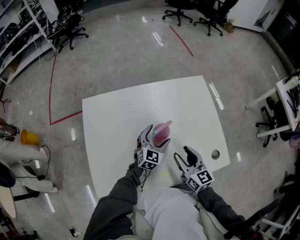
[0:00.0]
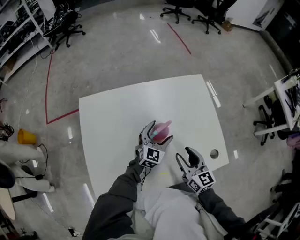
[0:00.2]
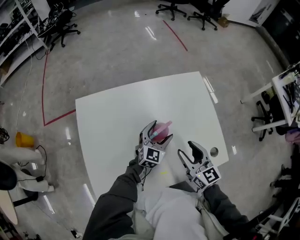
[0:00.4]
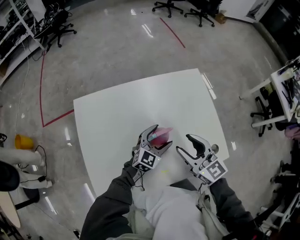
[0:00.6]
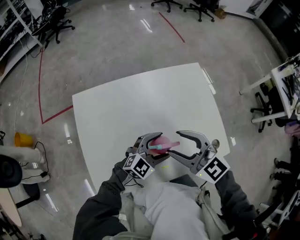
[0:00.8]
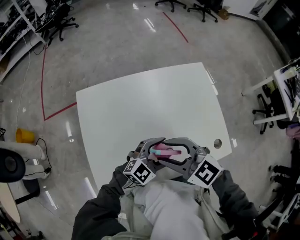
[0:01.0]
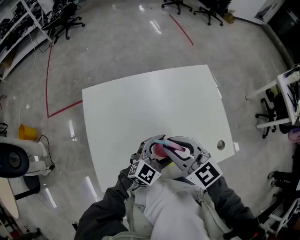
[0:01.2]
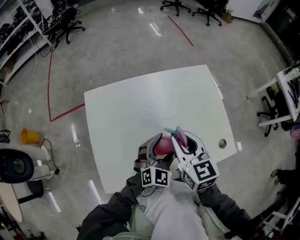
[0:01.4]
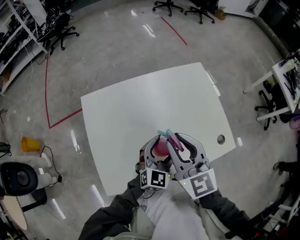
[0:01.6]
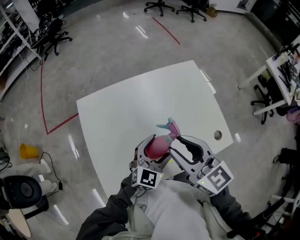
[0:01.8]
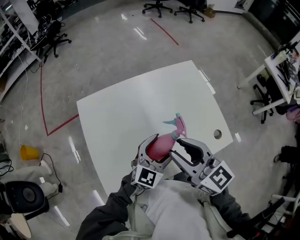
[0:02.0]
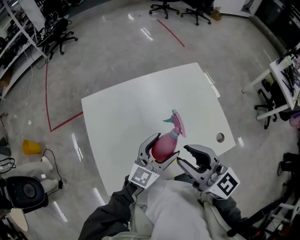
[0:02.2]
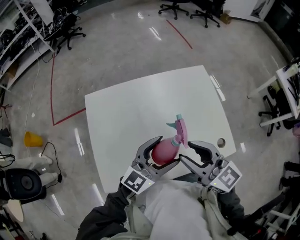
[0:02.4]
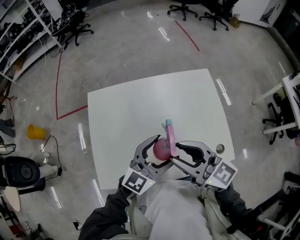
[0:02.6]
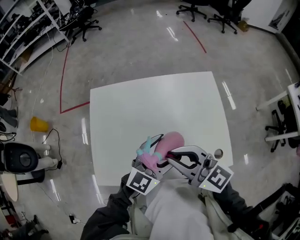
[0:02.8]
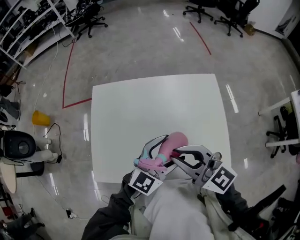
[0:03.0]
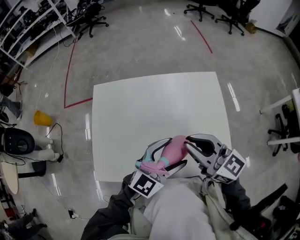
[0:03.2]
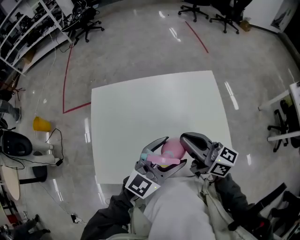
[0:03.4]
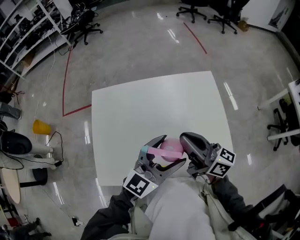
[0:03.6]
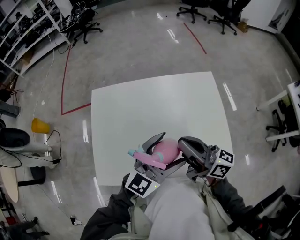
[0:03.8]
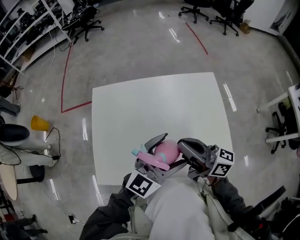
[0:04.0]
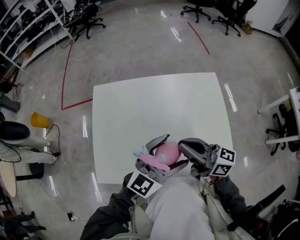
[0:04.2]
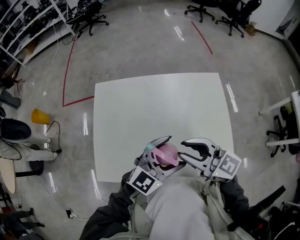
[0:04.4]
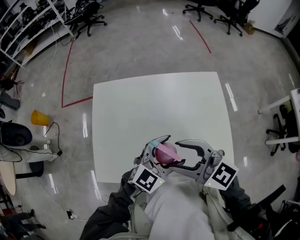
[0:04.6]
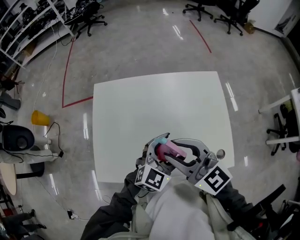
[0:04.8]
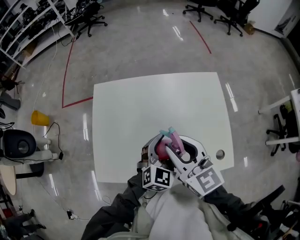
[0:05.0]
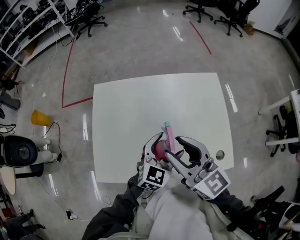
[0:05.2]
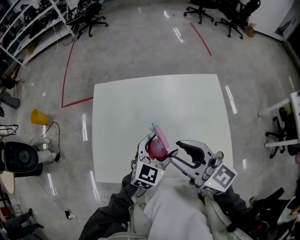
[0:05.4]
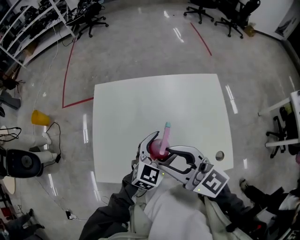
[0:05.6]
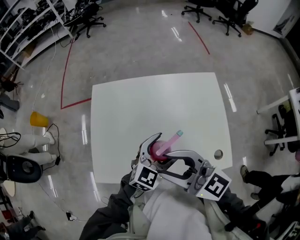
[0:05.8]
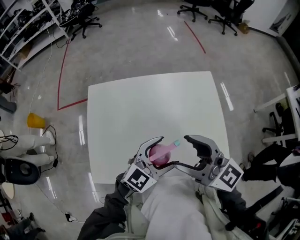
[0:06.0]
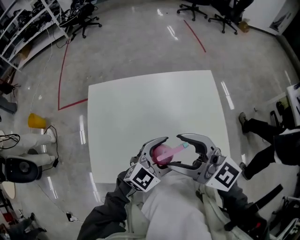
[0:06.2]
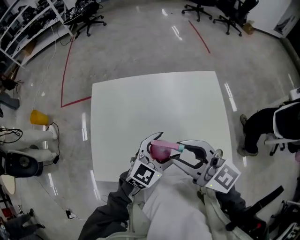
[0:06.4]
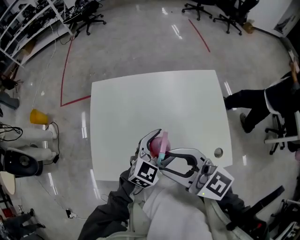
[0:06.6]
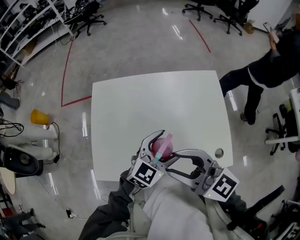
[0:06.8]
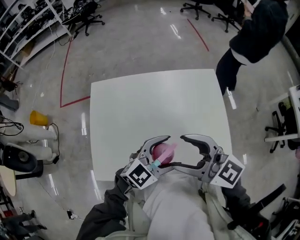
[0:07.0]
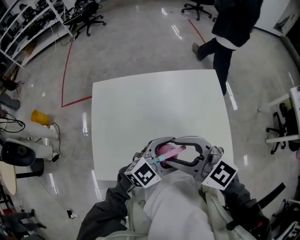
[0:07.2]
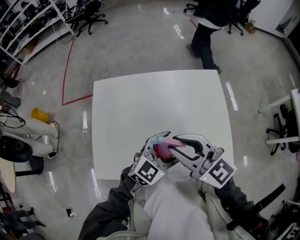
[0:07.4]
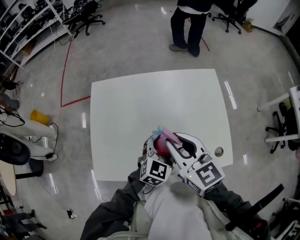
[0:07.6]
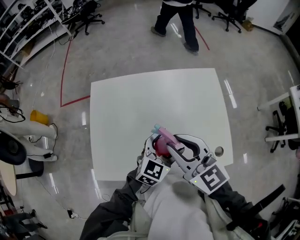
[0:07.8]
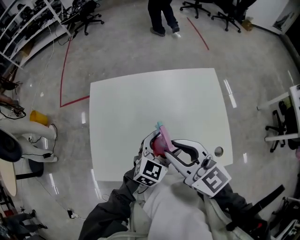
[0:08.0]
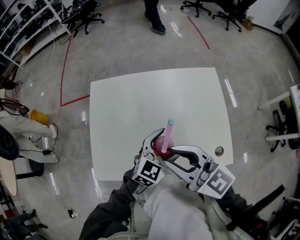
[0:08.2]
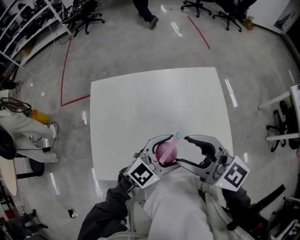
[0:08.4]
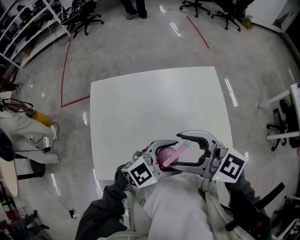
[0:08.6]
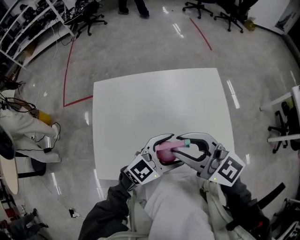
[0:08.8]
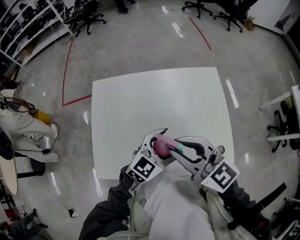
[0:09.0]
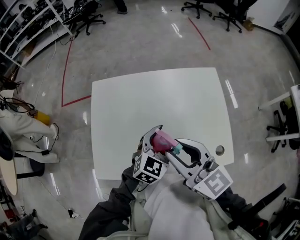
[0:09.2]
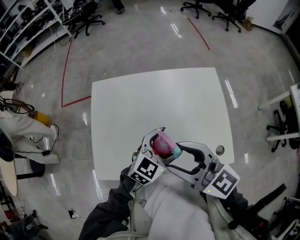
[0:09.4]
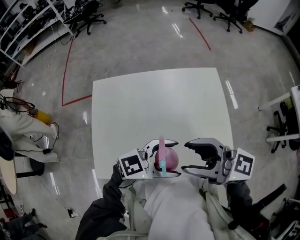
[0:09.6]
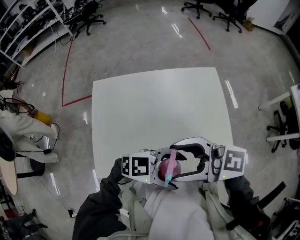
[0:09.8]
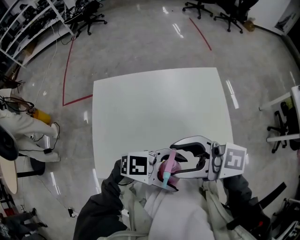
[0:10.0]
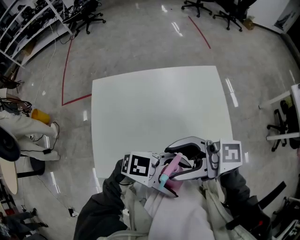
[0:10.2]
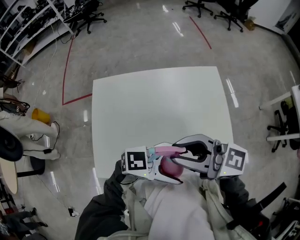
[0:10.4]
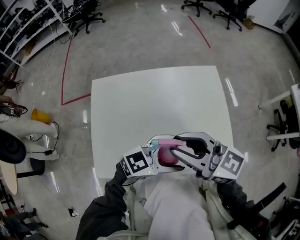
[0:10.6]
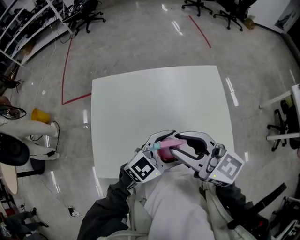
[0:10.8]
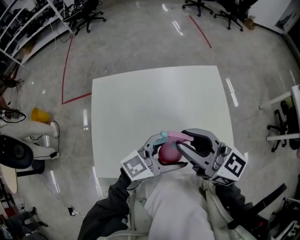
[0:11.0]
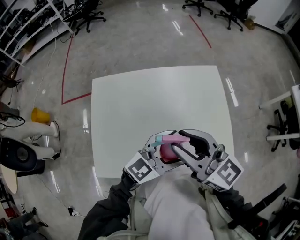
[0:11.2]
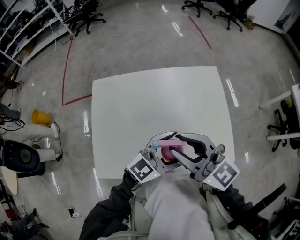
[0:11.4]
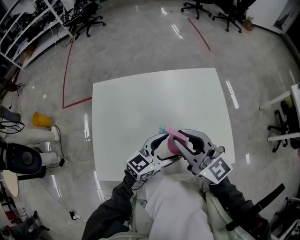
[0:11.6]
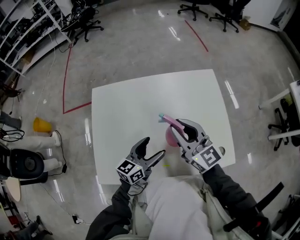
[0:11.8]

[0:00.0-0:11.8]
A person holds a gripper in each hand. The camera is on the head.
0:00.0 to 0:01.4: The left gripper changes place by about 15 cm. Meanwhile the right gripper goes about 10 cm upward, and closes up.
0:01.4 to 0:03.0: The left gripper moves upward and to the right, about 15 cm, and changes its angle by some 20 degrees. Meanwhile the right gripper is displaced upward, backward and to the right by roughly 10 cm, and rotates roughly 50 degrees.
0:04.4 to 0:06.0: The right gripper is displaced upward by some 5 cm, and opens up.
0:06.0 to 0:07.4: The right gripper closes.
0:07.4 to 0:08.8: The right gripper opens and closes again.
0:08.8 to 0:10.4: The right gripper rotates roughly 20 degrees, and opens, then closes again, while the left gripper rotates approximately 40 degrees.
0:10.4 to 0:11.8: The right gripper changes place by roughly 15 cm, and swivels roughly 40 degrees; the left gripper travels downward by approximately 15 cm, and turns by some 60 degrees.

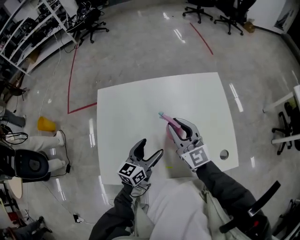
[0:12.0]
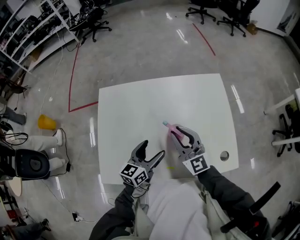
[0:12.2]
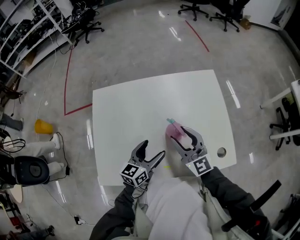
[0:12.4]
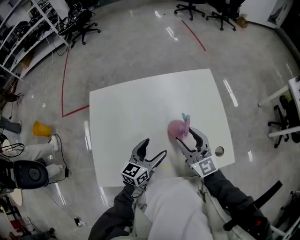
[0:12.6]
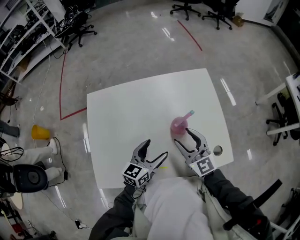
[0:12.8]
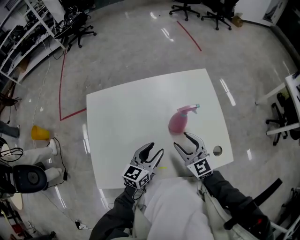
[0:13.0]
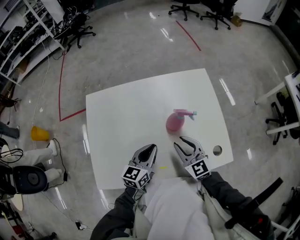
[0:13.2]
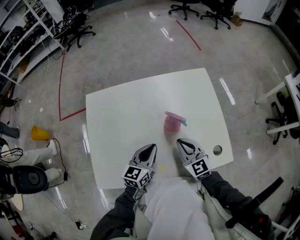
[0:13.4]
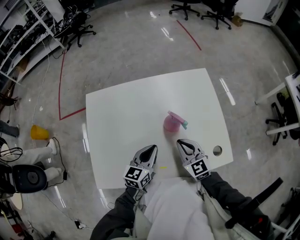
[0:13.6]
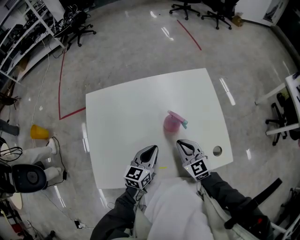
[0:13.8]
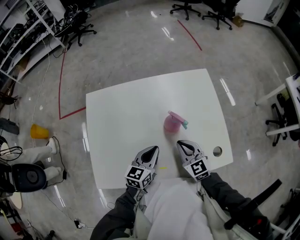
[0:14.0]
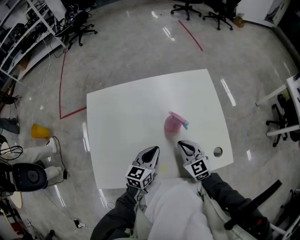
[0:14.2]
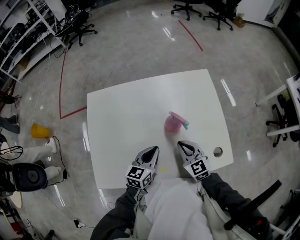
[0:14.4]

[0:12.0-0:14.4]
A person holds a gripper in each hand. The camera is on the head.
0:12.0 to 0:13.2: The right gripper moves downward, to the right and backward, about 15 cm, and rotates roughly 20 degrees; the left gripper closes up.
0:13.2 to 0:14.4: The right gripper closes its fingers.

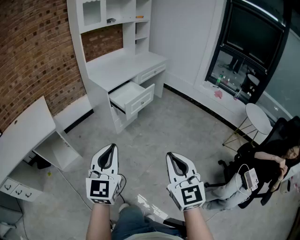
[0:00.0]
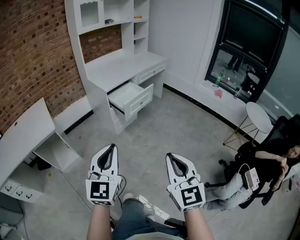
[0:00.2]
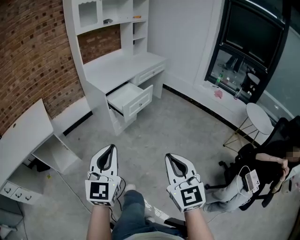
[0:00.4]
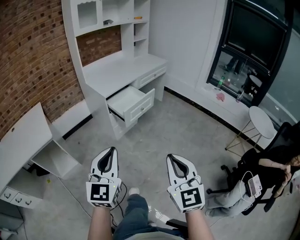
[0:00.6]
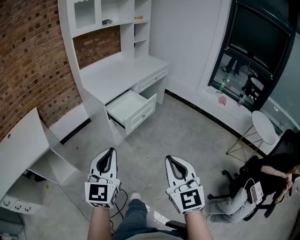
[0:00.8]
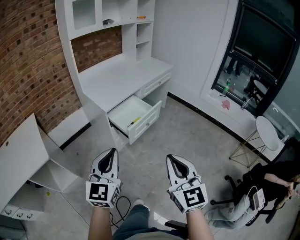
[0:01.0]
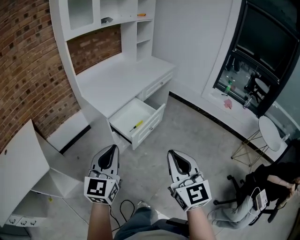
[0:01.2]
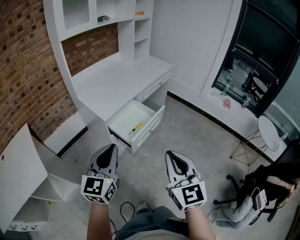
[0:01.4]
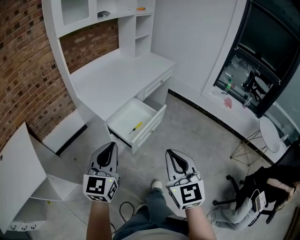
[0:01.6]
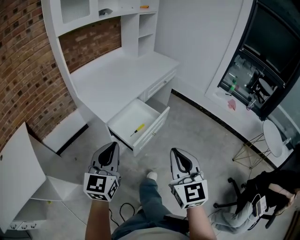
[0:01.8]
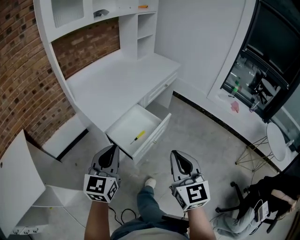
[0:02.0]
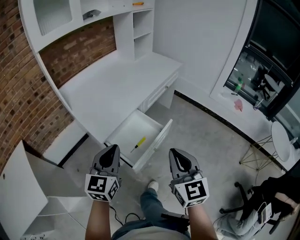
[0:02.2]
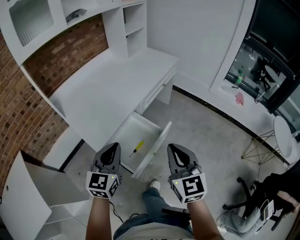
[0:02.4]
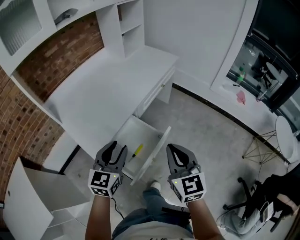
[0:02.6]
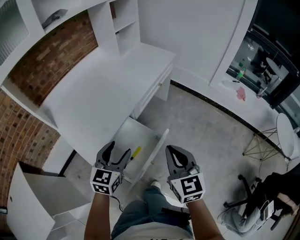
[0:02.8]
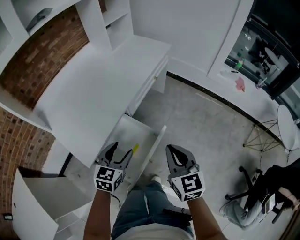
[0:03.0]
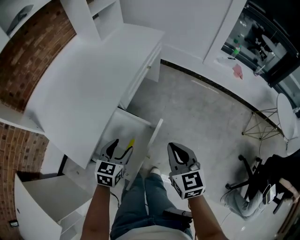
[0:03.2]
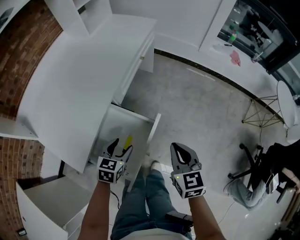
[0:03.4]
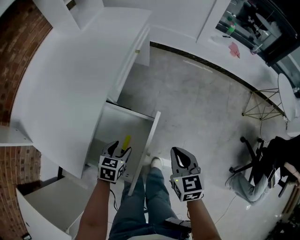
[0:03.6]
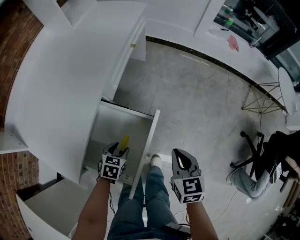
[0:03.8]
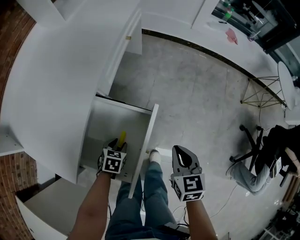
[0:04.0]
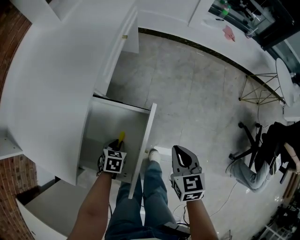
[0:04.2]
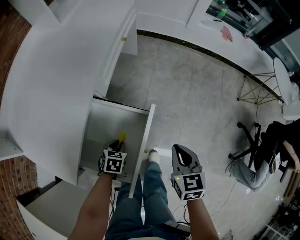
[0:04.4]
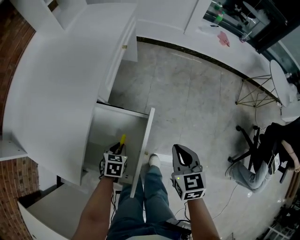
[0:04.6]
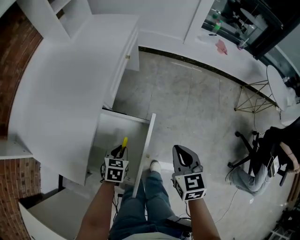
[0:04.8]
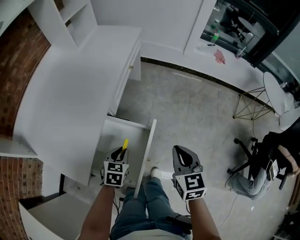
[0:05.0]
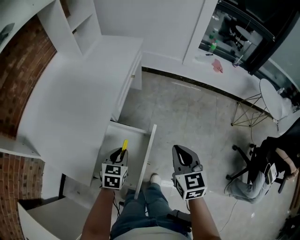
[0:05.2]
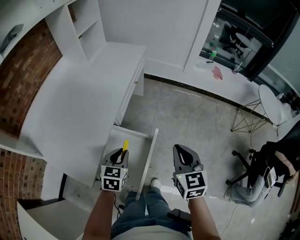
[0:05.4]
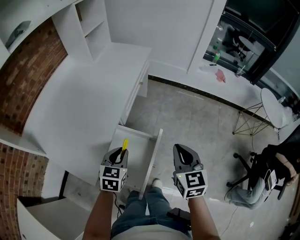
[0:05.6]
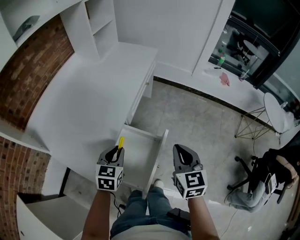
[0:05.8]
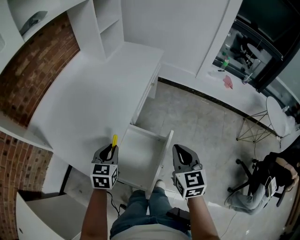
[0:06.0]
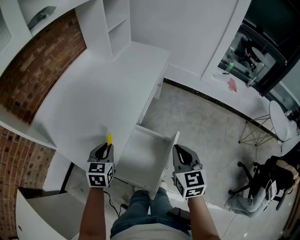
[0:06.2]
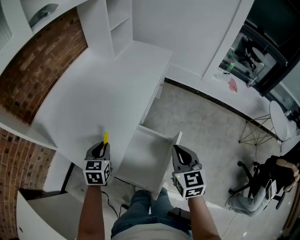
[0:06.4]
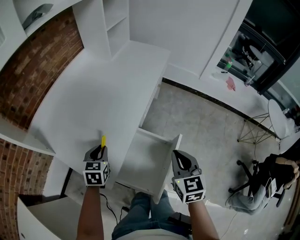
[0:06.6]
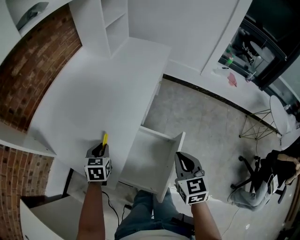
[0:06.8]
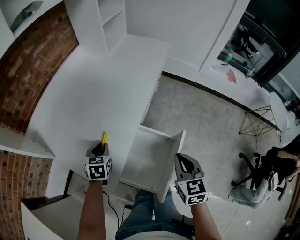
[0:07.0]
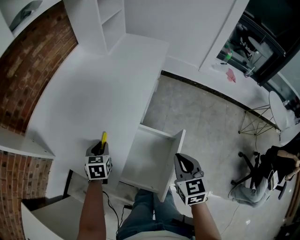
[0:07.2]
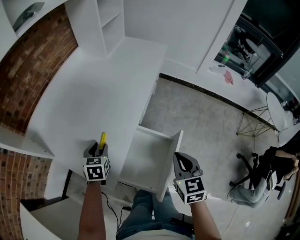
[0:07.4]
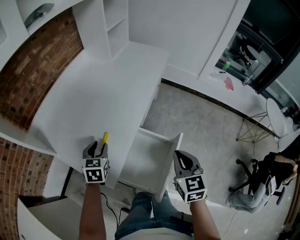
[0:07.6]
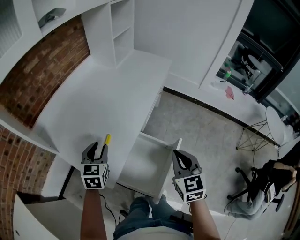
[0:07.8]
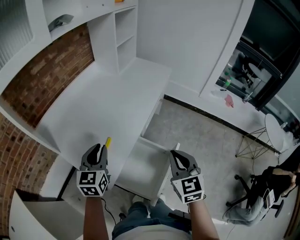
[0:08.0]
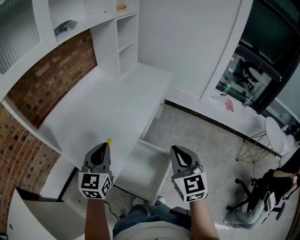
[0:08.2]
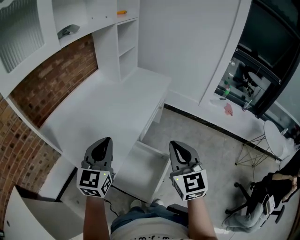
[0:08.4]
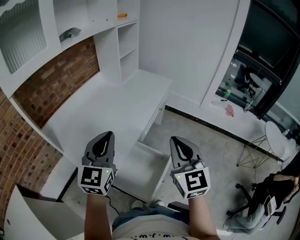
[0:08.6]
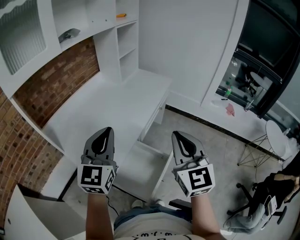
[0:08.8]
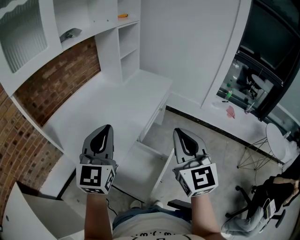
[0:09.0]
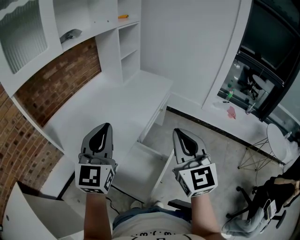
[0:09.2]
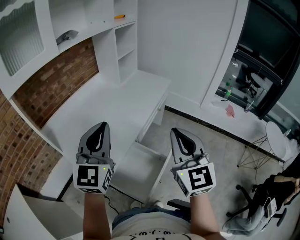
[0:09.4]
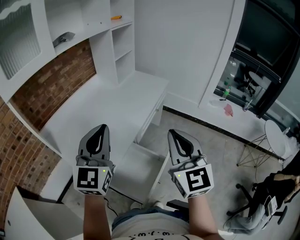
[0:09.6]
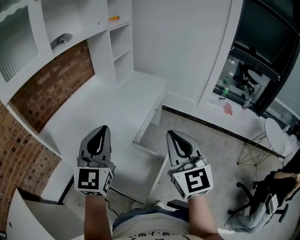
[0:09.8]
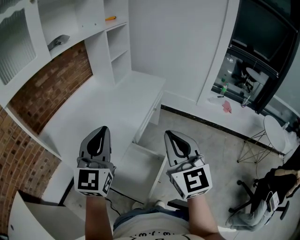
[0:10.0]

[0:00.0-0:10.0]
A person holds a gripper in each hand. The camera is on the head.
0:00.0 to 0:01.4: The two grippers go approximately 40 cm forward.
0:01.4 to 0:02.8: The grippers both shift forward by about 35 cm. The left gripper changes its angle by some 20 degrees, and opens its fingers.
0:02.8 to 0:04.2: The left gripper shifts approximately 35 cm downward, tilts its fingers approximately 50 degrees downward, and closes its fingers, while the right gripper heads downward, covering approximately 25 cm, and swivels about 40 degrees.
0:04.2 to 0:05.8: The left gripper is displaced upward by approximately 30 cm, and angles its fingers upward, by some 30 degrees, while the right gripper is displaced upward by some 20 cm.
0:05.8 to 0:07.2: The right gripper shifts some 10 cm to the left and downward. The left gripper heads to the left and downward, covering about 20 cm.
0:07.2 to 0:08.6: Both grippers move upward, some 25 cm. The left gripper angles its fingers upward, by approximately 50 degrees. The right gripper changes its angle by about 30 degrees.
0:08.6 to 0:10.0: The left gripper moves roughly 5 cm.
